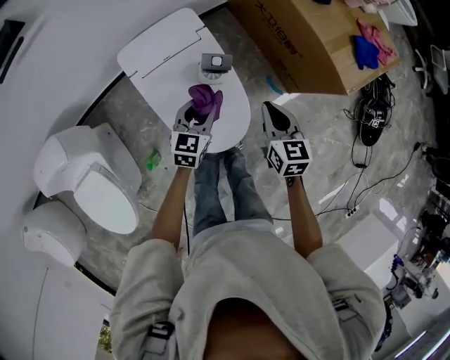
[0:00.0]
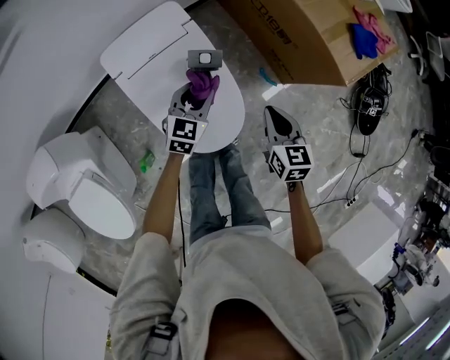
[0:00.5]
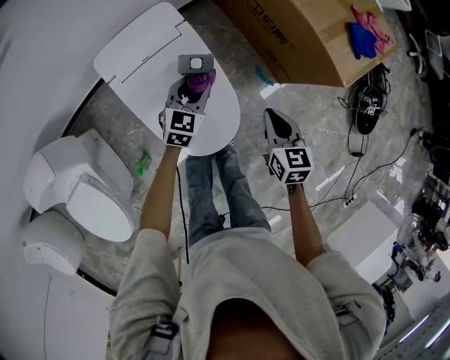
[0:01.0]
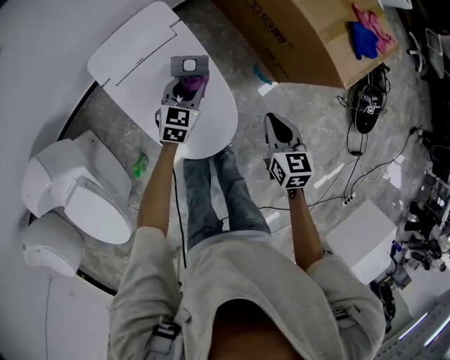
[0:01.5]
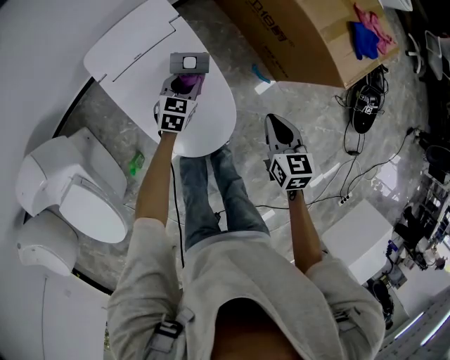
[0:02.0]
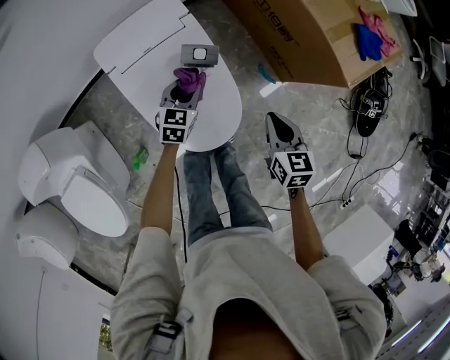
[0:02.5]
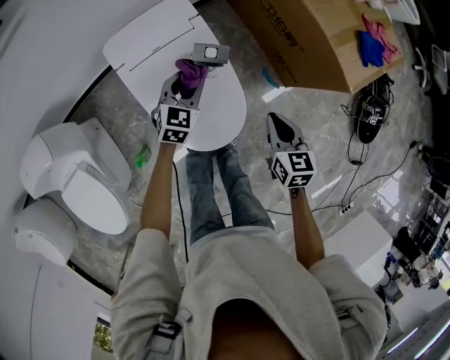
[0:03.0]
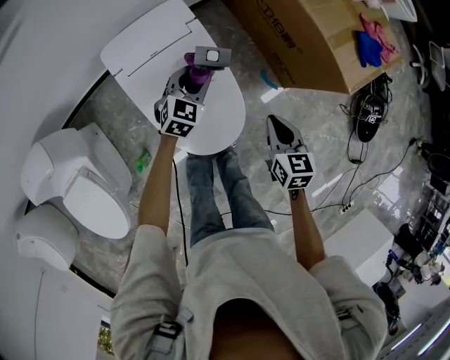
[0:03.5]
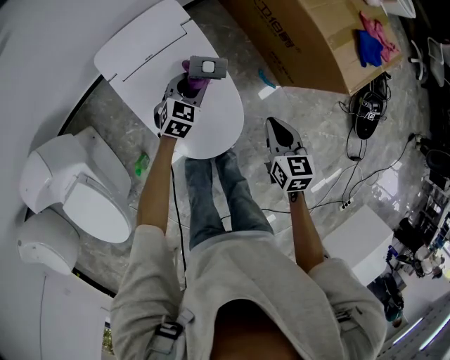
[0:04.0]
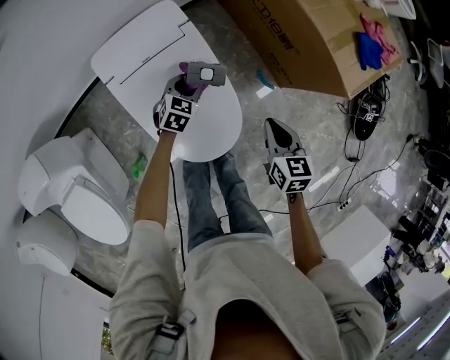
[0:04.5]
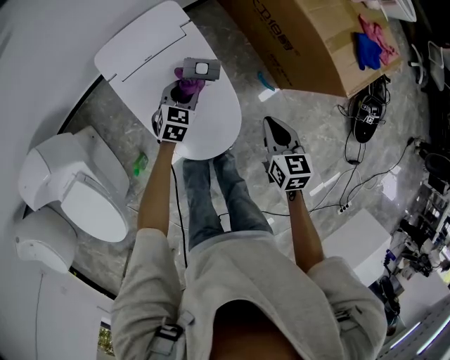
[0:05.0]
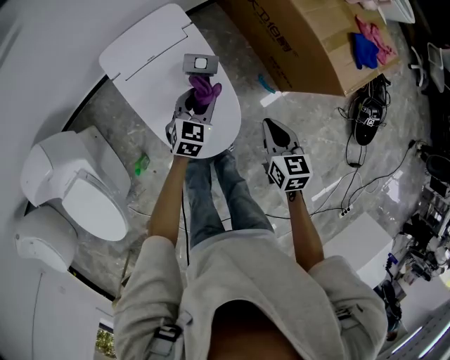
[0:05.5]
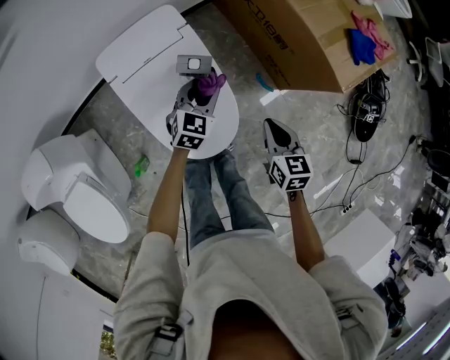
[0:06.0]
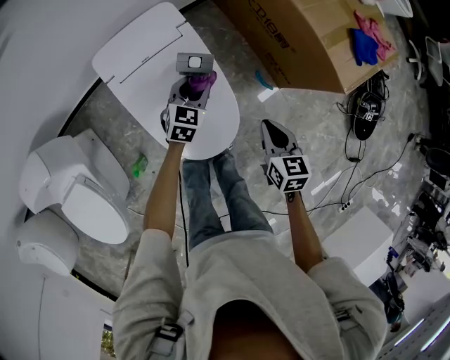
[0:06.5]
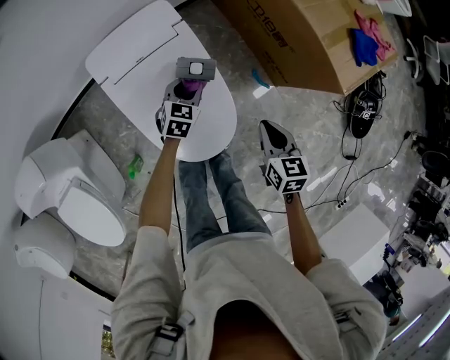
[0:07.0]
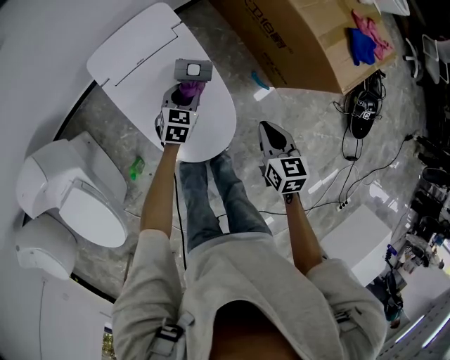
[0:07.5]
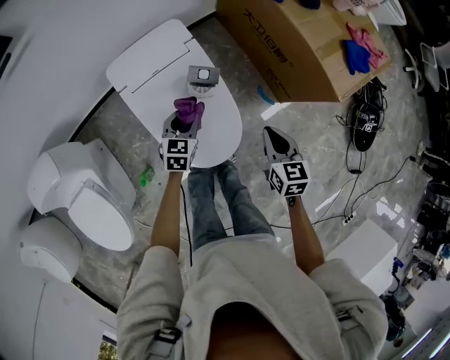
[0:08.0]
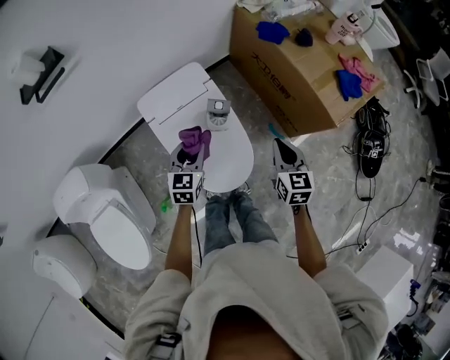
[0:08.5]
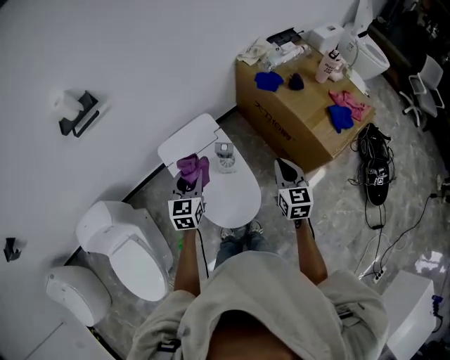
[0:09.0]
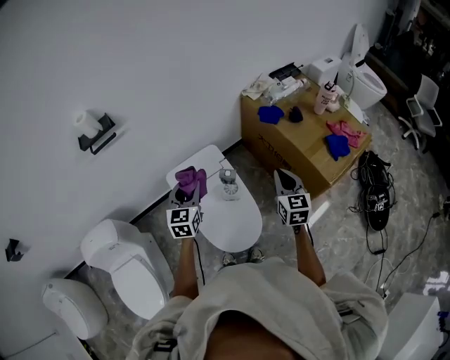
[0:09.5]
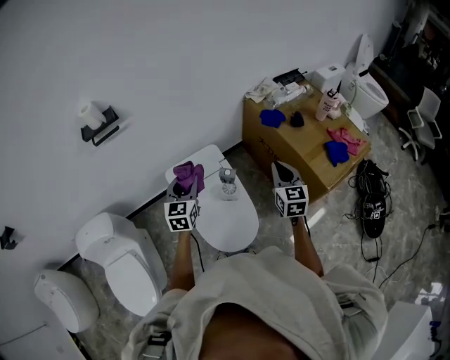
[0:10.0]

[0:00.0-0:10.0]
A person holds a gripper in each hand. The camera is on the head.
0:00.0 to 0:02.0: The right gripper travels to the right and downward by roughly 10 cm. The left gripper is displaced downward and forward by approximately 15 cm.
0:04.0 to 0:06.0: The left gripper moves upward and to the right, about 10 cm.
0:06.0 to 0:08.0: The left gripper goes roughly 10 cm to the left and backward.
0:08.0 to 0:10.0: The left gripper moves upward, about 30 cm, and turns by approximately 30 degrees, while the right gripper goes about 25 cm upward and forward, and swivels some 20 degrees.

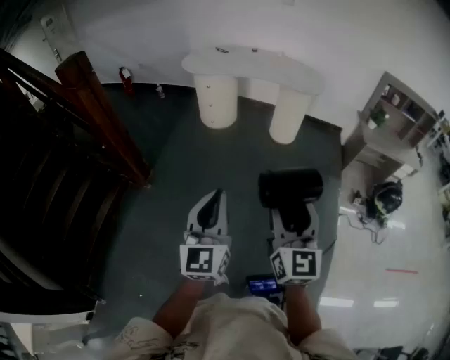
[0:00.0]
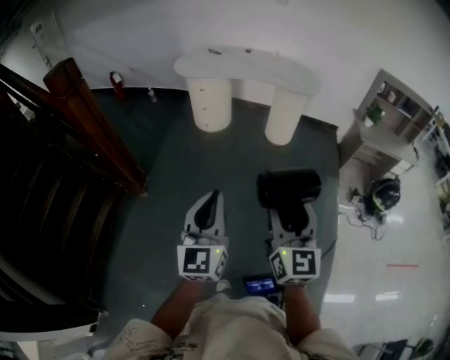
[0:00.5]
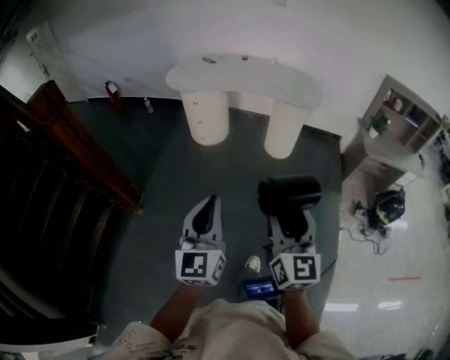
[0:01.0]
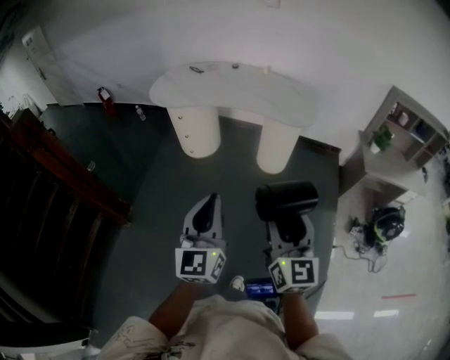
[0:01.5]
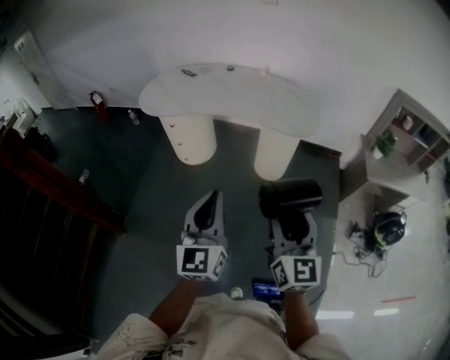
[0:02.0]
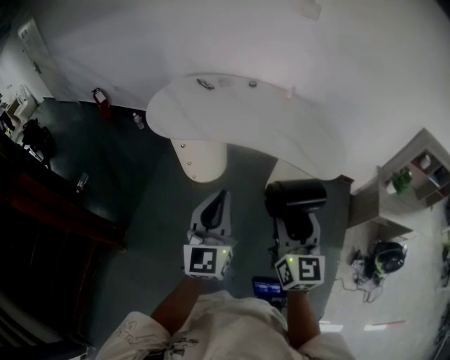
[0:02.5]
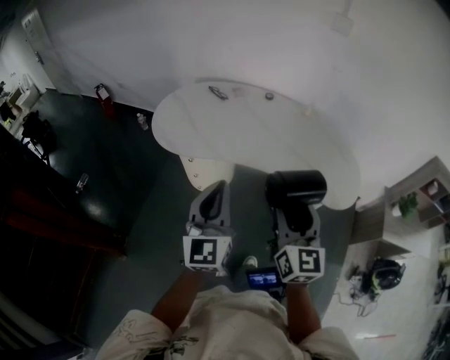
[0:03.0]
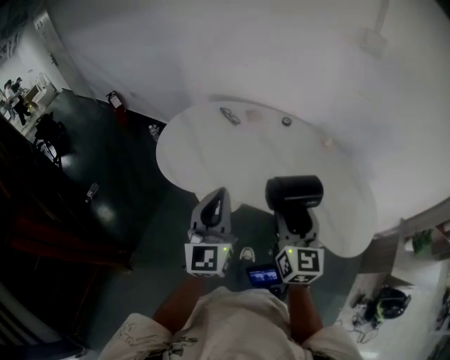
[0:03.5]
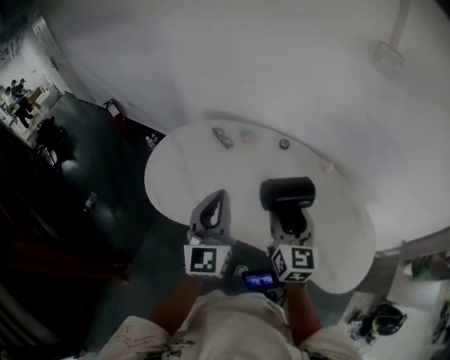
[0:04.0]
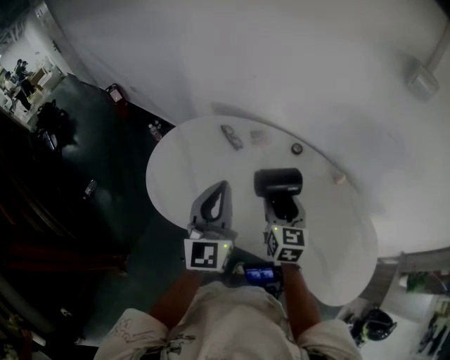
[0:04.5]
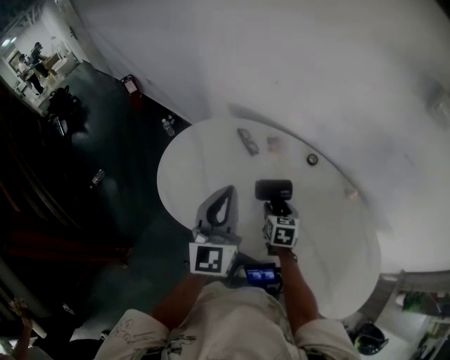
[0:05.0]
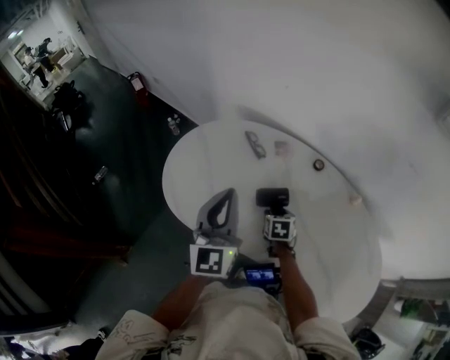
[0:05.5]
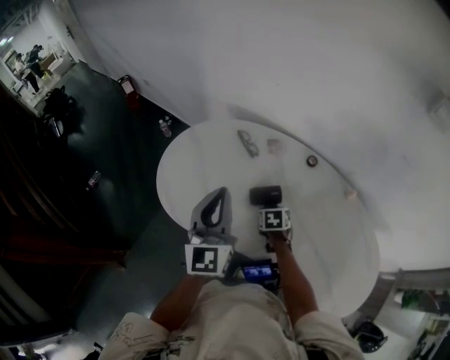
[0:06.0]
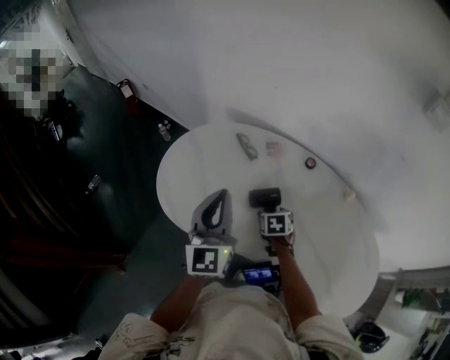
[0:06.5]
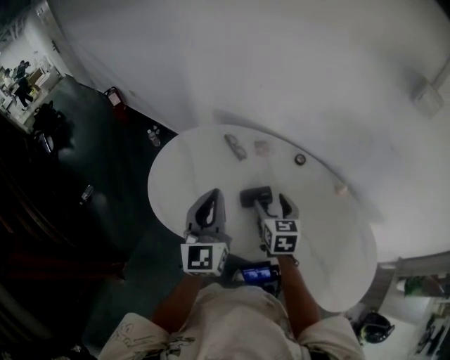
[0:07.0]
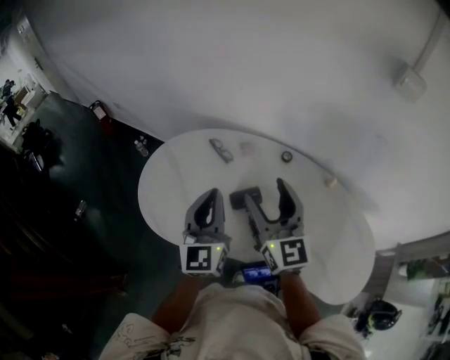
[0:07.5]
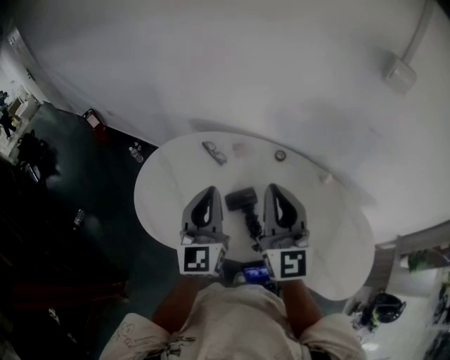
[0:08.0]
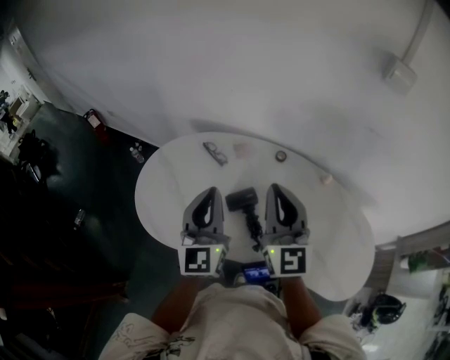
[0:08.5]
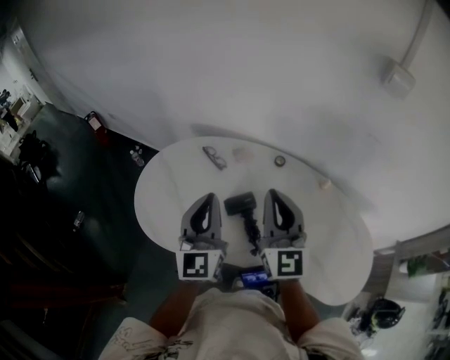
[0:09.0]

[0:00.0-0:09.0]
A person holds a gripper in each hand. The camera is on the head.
0:00.0 to 0:02.0: The pair of grippers is taken forward, some 50 cm.
0:02.0 to 0:04.5: The pair of grippers is taken forward, about 80 cm. The right gripper swivels roughly 30 degrees.
0:04.5 to 0:07.0: The right gripper travels downward and back again, some 20 cm each way. The left gripper changes place by about 5 cm.
0:07.0 to 0:09.0: The right gripper goes approximately 20 cm upward, tilts its fingers approximately 40 degrees upward, and closes.

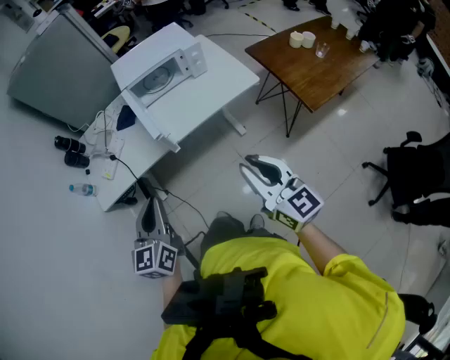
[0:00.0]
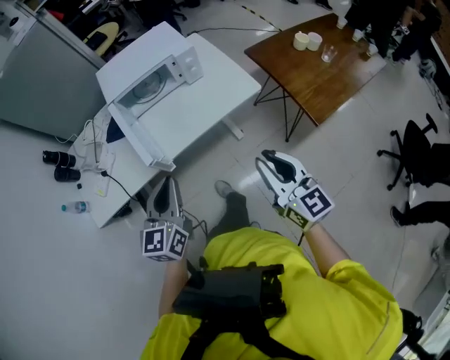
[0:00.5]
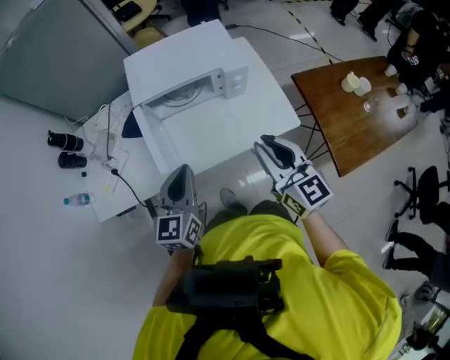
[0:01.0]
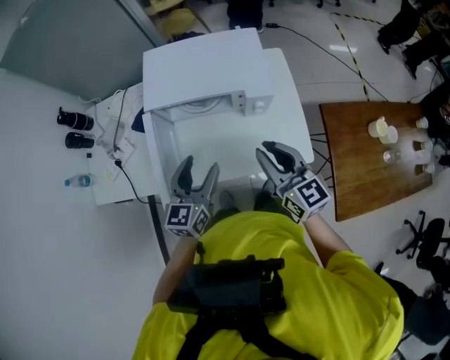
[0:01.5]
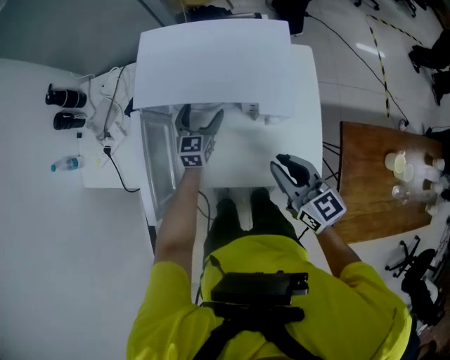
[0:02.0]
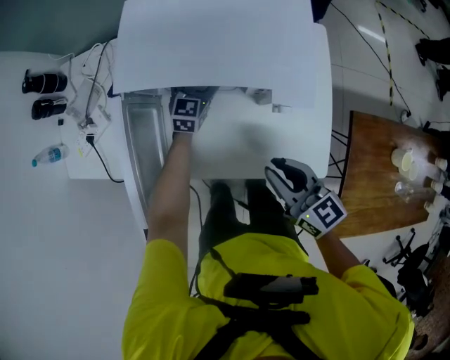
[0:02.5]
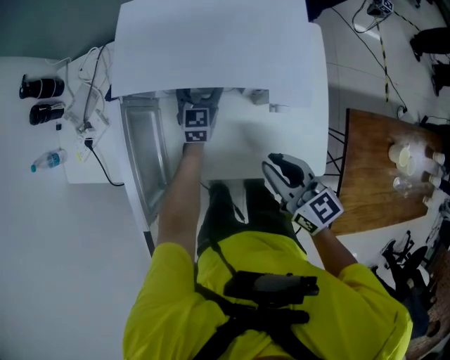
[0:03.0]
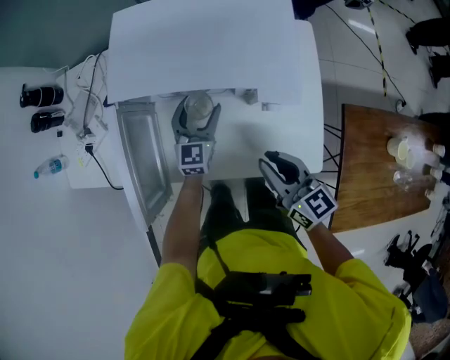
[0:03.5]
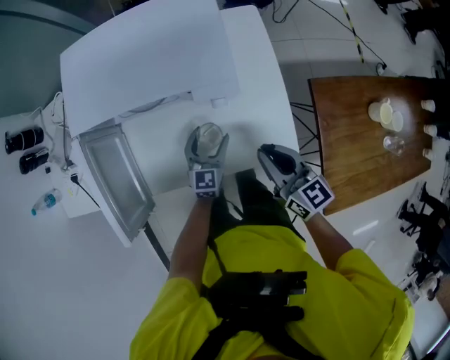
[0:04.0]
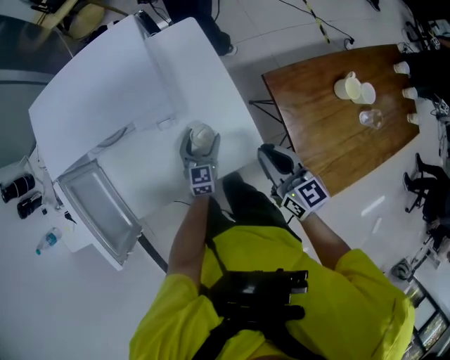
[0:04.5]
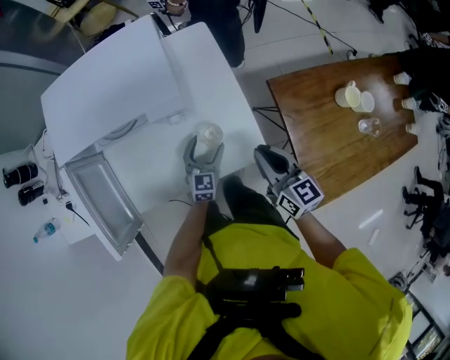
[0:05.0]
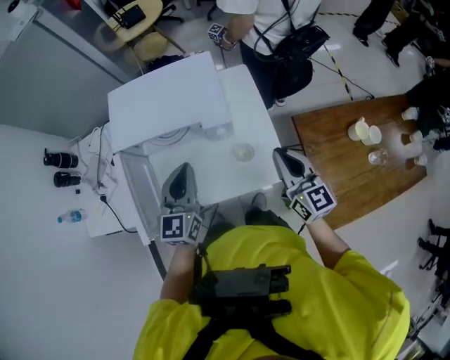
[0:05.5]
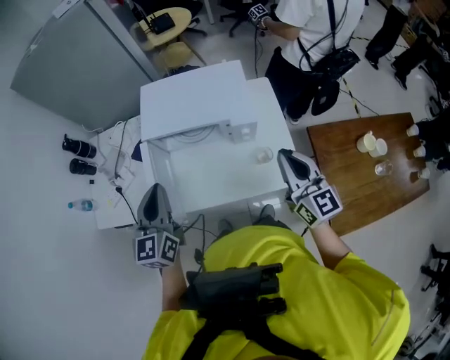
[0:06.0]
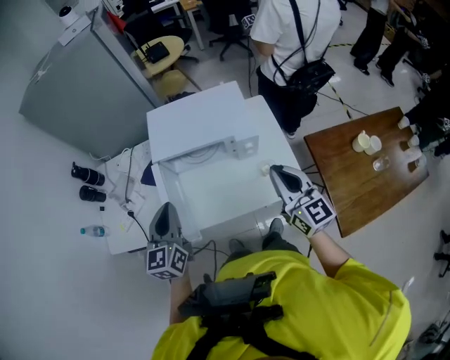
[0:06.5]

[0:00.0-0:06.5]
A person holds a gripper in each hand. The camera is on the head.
0:00.0 to 0:02.0: The pair of grippers is taken approximately 60 cm. The left gripper changes its angle by approximately 20 degrees, and opens its fingers. The right gripper turns by roughly 40 degrees.
0:02.0 to 0:04.5: Both grippers travel together to the right, backward and downward, some 25 cm. The right gripper turns by some 30 degrees.
0:04.5 to 0:06.5: The left gripper moves upward and to the left, some 50 cm, rotates roughly 20 degrees, and closes its fingers. The right gripper is displaced upward and to the left by roughly 30 cm, and changes its angle by approximately 30 degrees.

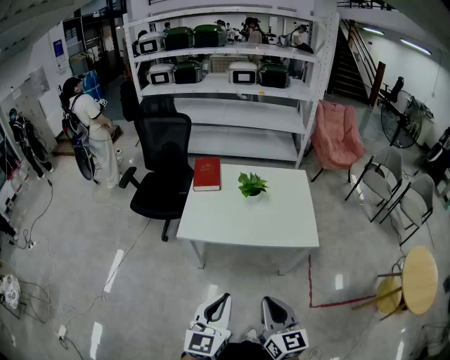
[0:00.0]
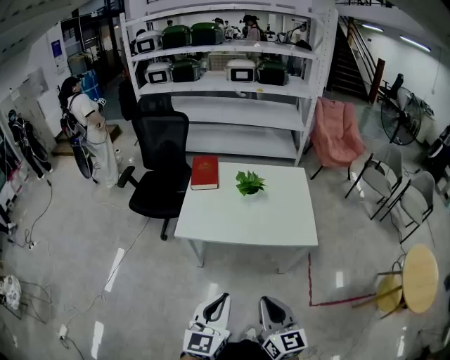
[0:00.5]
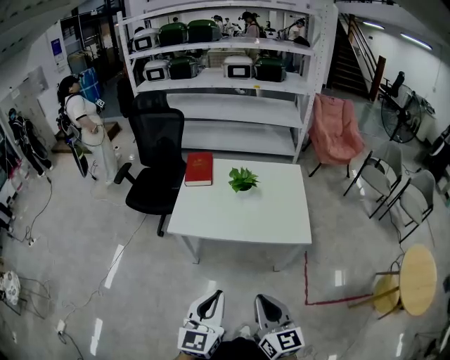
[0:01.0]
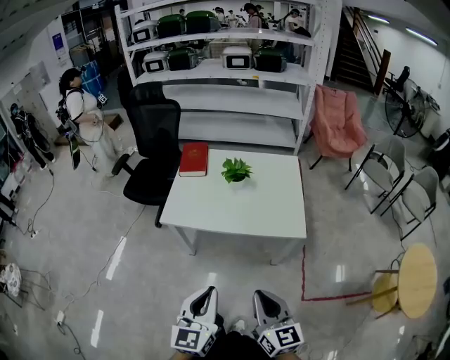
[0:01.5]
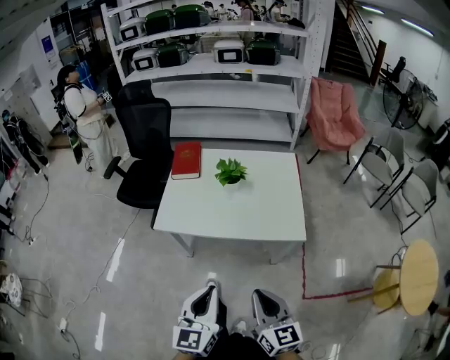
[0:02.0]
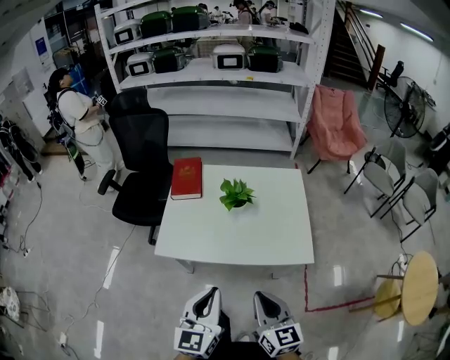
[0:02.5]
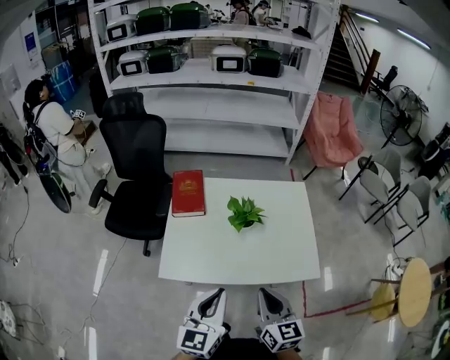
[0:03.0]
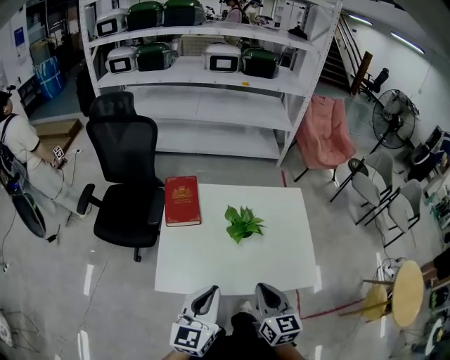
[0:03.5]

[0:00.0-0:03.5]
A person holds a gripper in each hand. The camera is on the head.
0:00.0 to 0:02.0: The grippers both shift to the right and forward by approximately 10 cm.
0:02.0 to 0:03.5: The right gripper goes about 30 cm forward. The left gripper goes roughly 35 cm forward and to the left.
